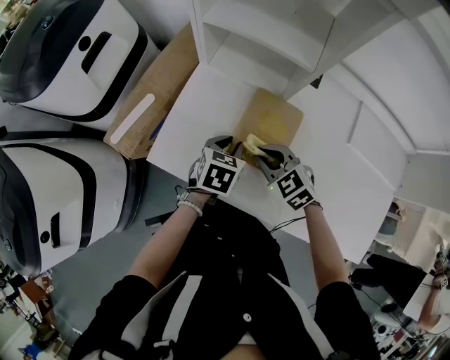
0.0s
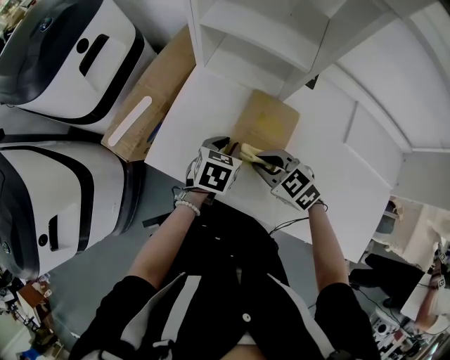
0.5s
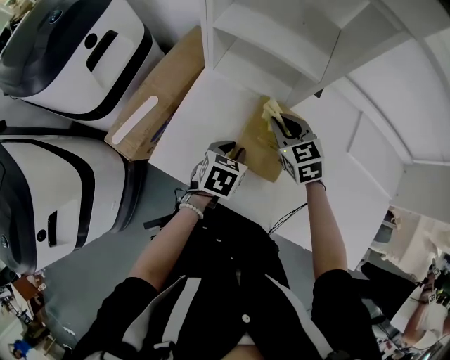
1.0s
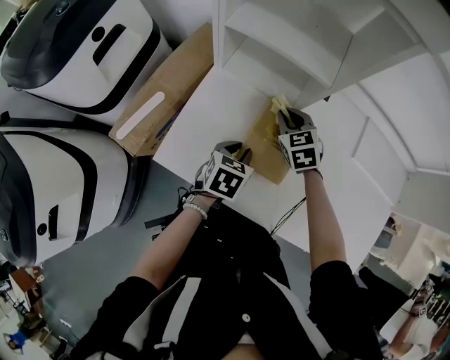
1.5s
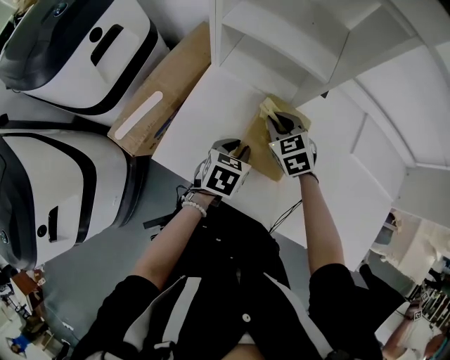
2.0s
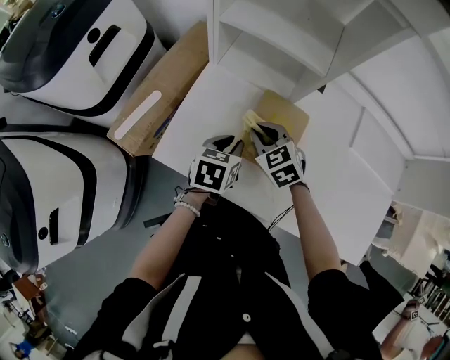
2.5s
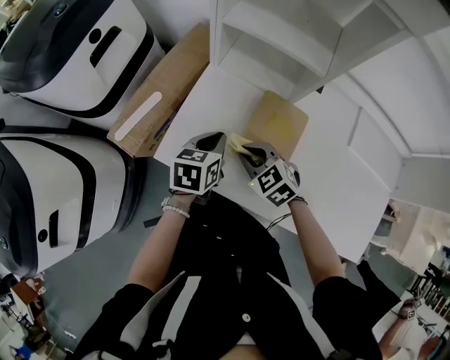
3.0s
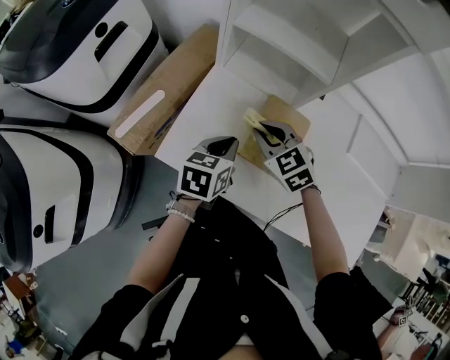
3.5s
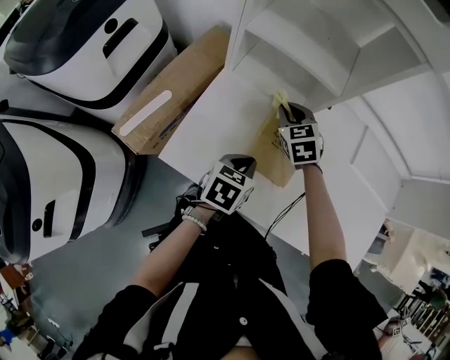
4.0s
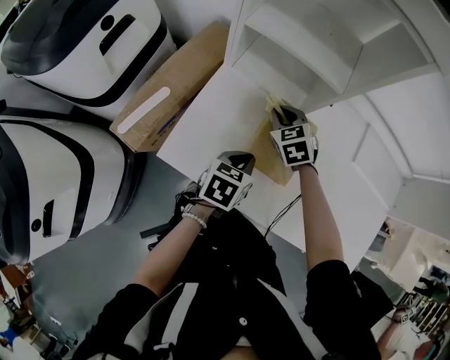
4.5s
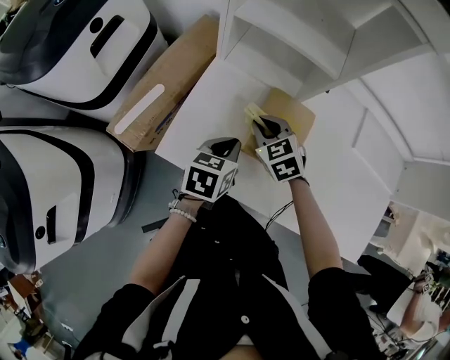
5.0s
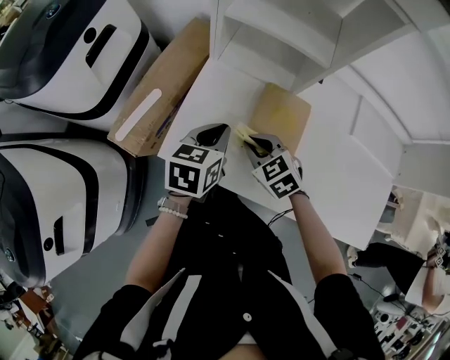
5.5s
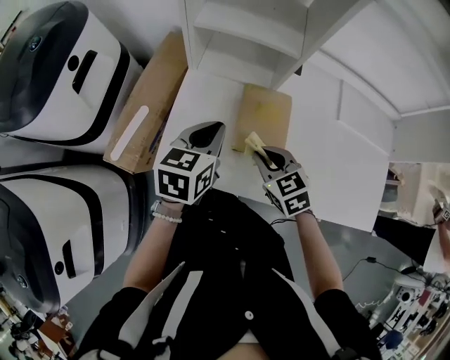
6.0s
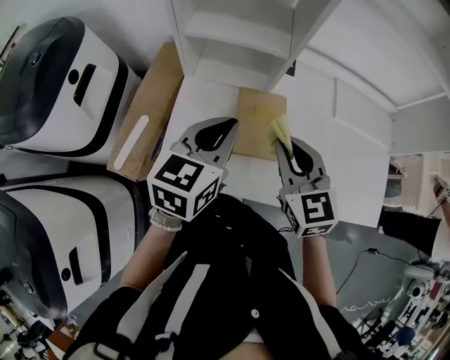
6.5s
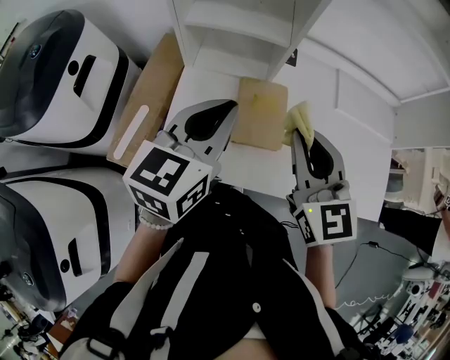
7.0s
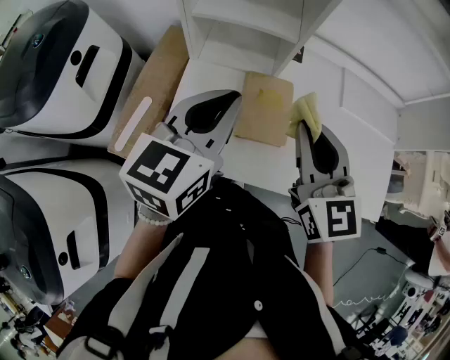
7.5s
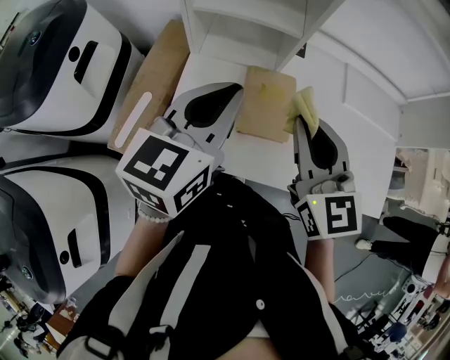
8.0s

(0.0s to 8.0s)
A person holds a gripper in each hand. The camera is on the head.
0.0s - 2.0s: The right gripper travels forward by approximately 10 cm.
2.0s - 4.0s: The left gripper closes up; the right gripper moves roughly 15 cm backward and comes back.
4.0s - 6.0s: The right gripper goes roughly 20 cm backward. Meanwhile the left gripper moves upward and to the left, approximately 10 cm.
6.0s - 8.0s: Both grippers move upward, approximately 20 cm. The right gripper tilts its fingers about 30 degrees upward. Meanwhile the left gripper turns by some 20 degrees.

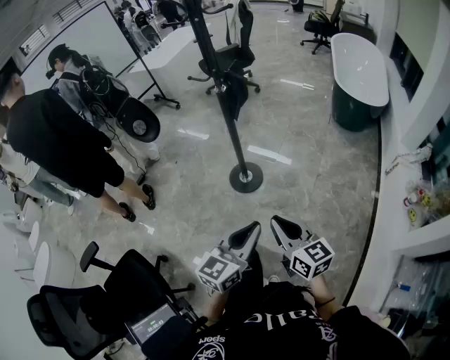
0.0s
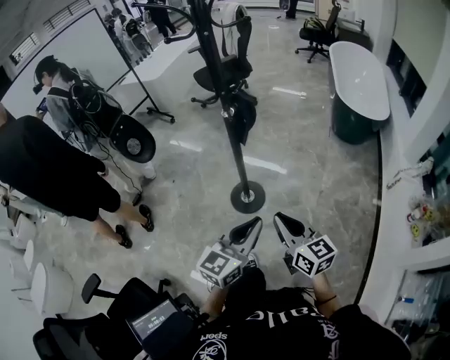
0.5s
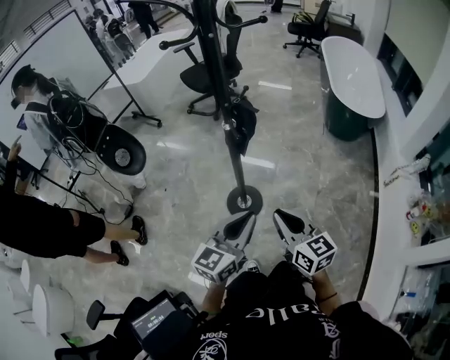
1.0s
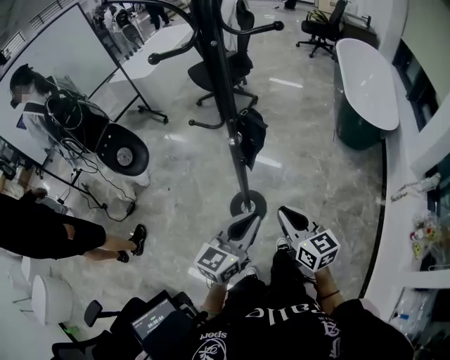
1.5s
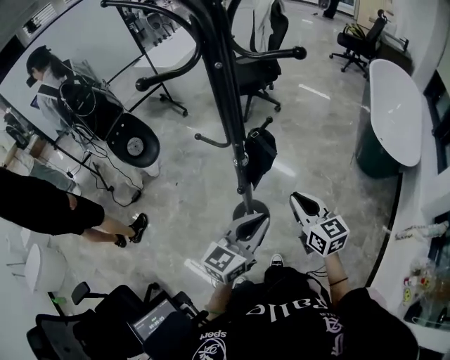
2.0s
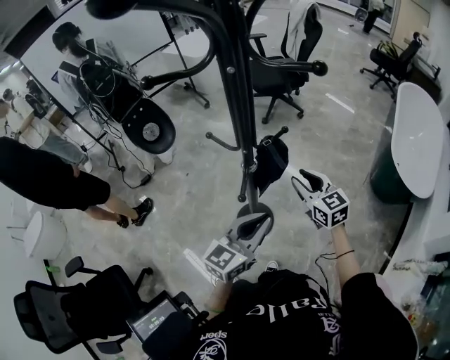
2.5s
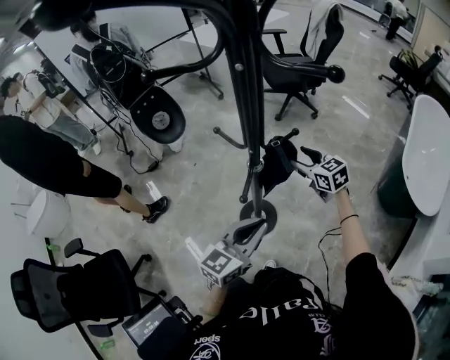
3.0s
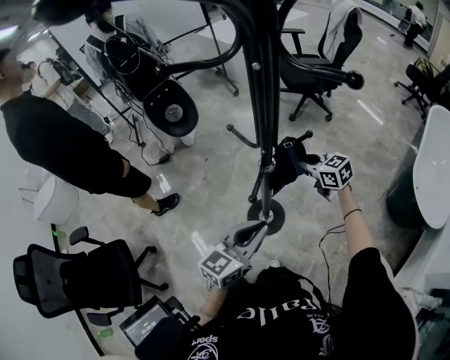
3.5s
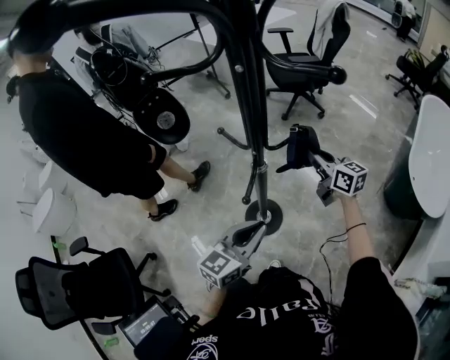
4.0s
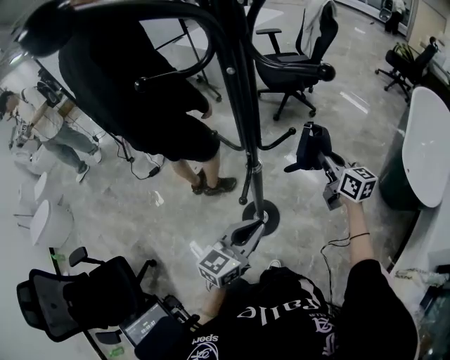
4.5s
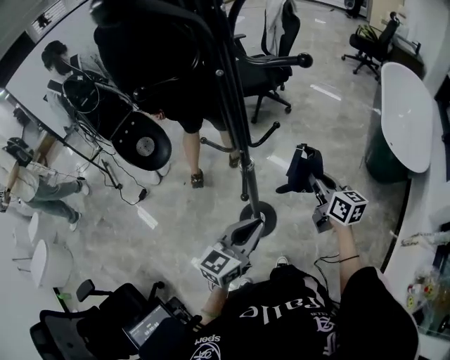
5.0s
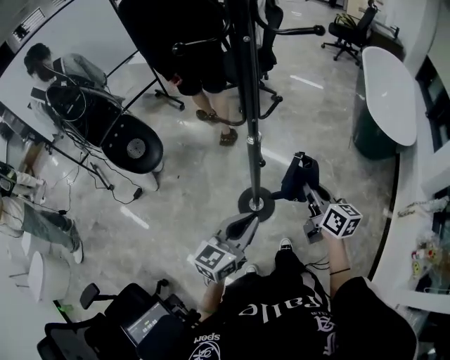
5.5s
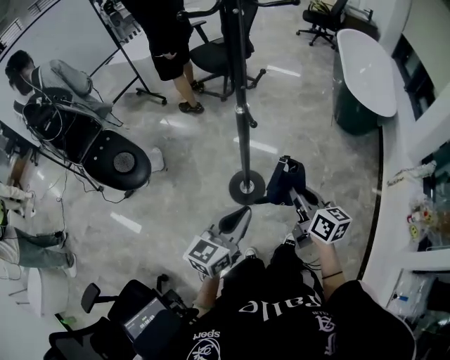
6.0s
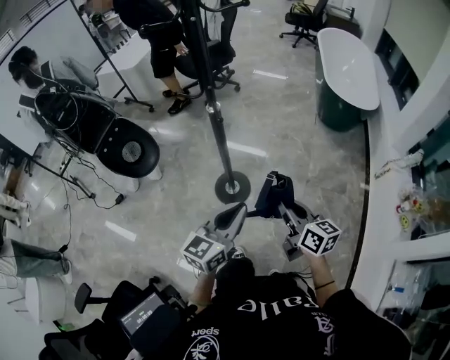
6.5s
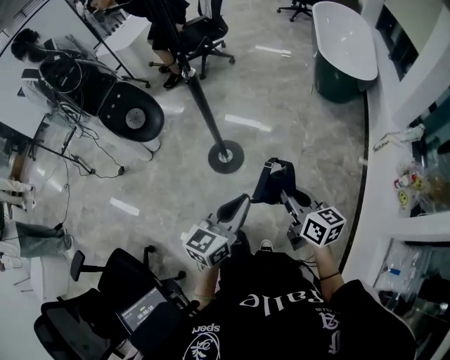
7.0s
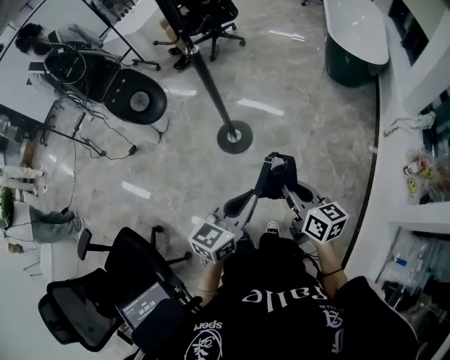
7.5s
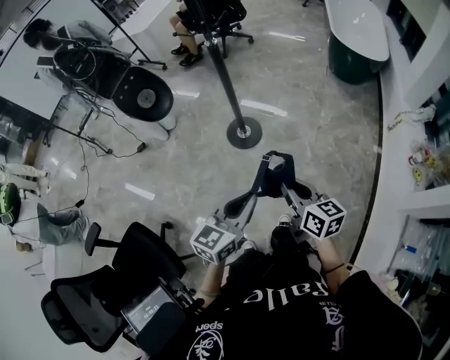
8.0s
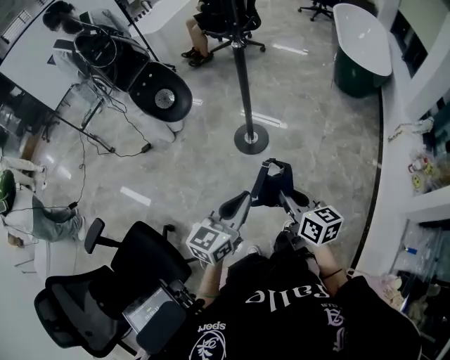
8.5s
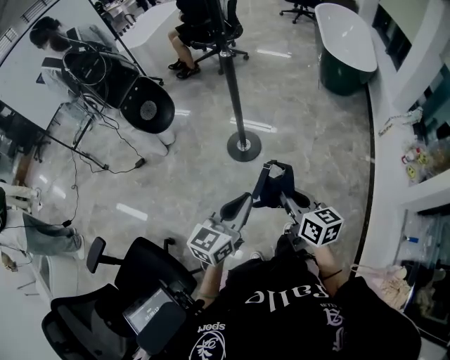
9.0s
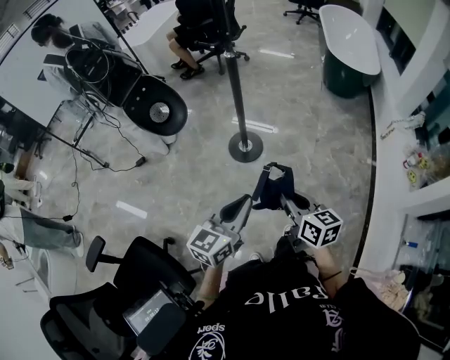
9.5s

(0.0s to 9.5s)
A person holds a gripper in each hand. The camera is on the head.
0.0s - 2.0s: The pair of grippers is taken forward, about 50 cm.
2.0s - 4.0s: The right gripper changes place by approximately 25 cm, changes its angle by approximately 30 degrees, and opens, then closes again; the left gripper ends up roughly 5 cm from where it was.
4.0s - 5.5s: The left gripper shifts by about 15 cm. Meanwhile the right gripper ends up about 30 cm from where it was, and changes its angle by some 40 degrees.
5.5s - 7.5s: The pair of grippers is taken backward and to the right, roughly 40 cm.
7.5s - 9.5s: The right gripper heads to the left and backward, covering some 20 cm, while the left gripper goes about 20 cm to the left.

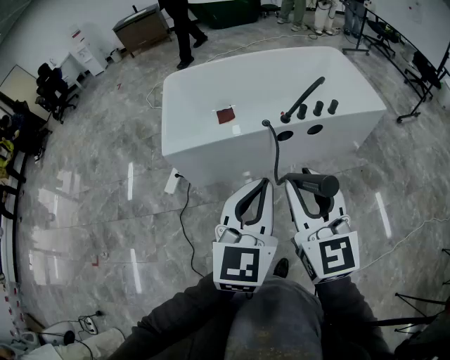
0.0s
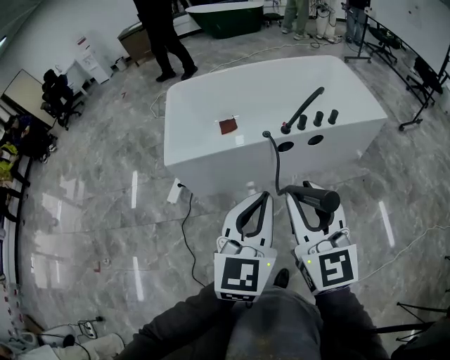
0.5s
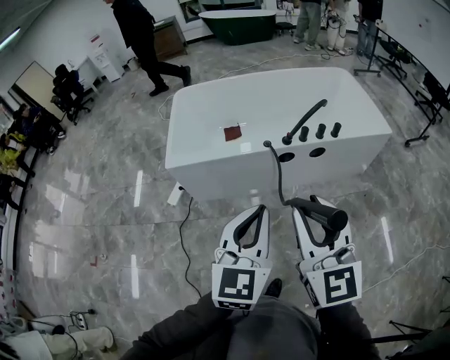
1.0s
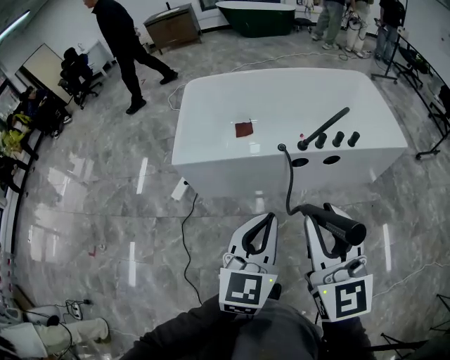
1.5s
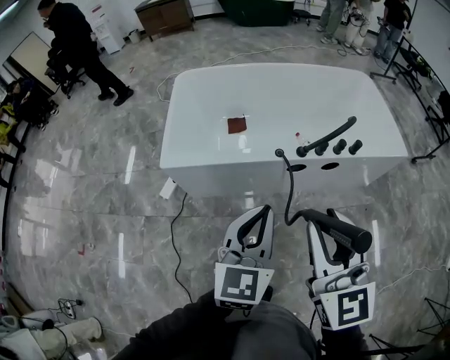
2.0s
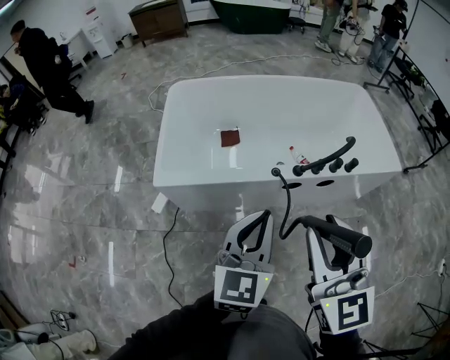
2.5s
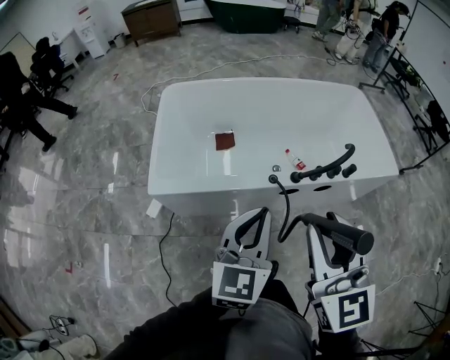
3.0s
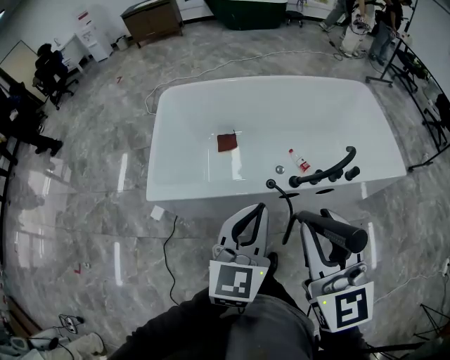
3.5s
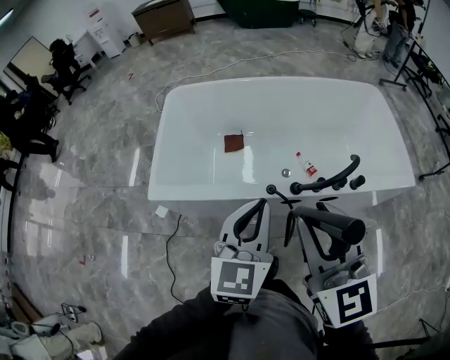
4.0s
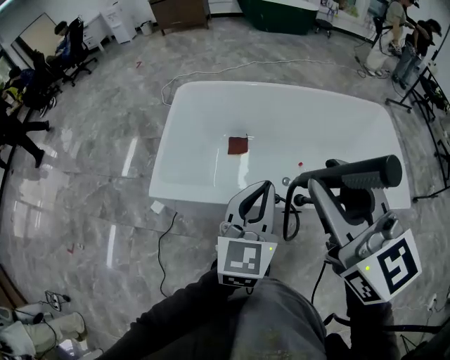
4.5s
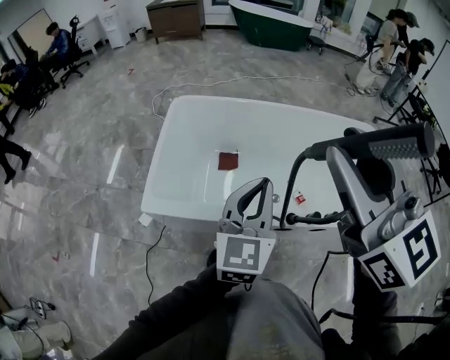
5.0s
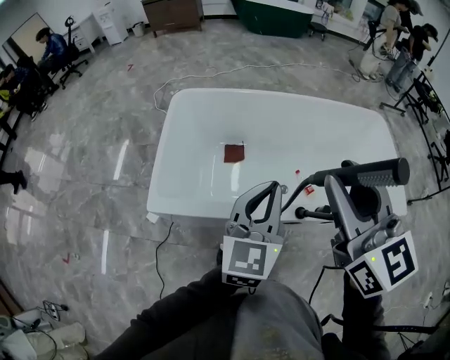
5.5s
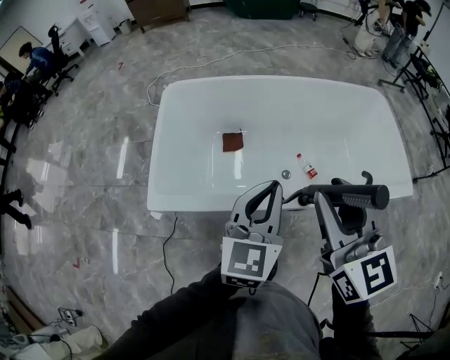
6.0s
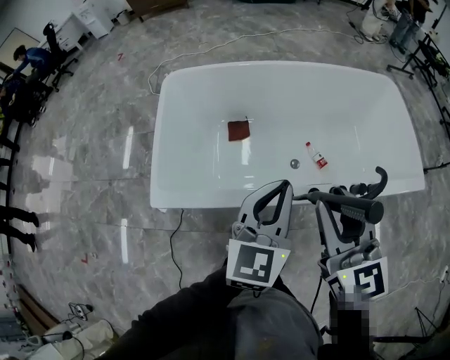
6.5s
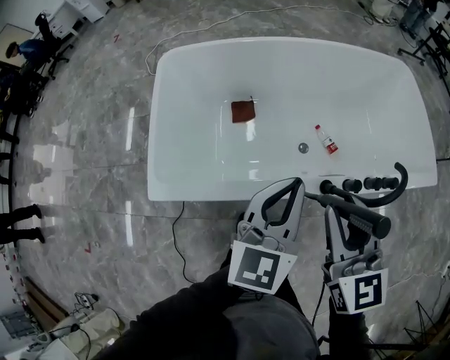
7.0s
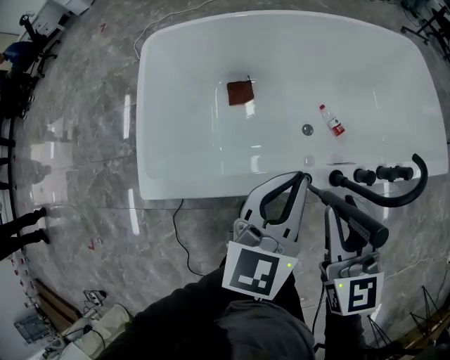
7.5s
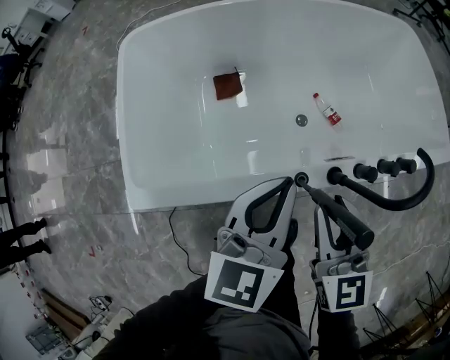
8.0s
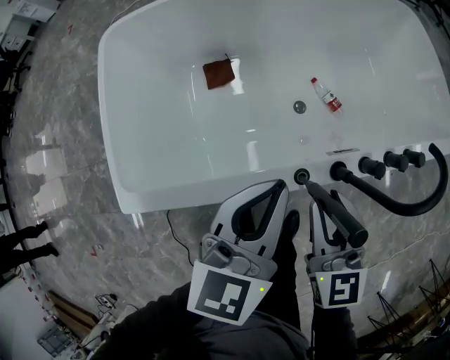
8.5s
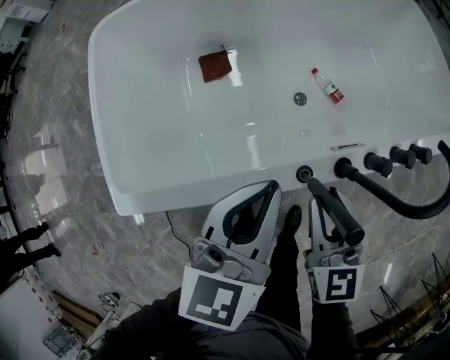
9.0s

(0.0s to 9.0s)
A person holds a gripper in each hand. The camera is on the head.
0.0s - 2.0s: The right gripper travels forward by about 10 cm; the left gripper heads forward and downward, covering roughly 15 cm.
2.0s - 4.5s: Both grippers move forward, about 25 cm. The right gripper changes its angle by about 20 degrees.
4.5s - 7.0s: The left gripper moves forward and downward, about 10 cm. Meanwhile the right gripper goes roughly 20 cm downward and forward, and rotates approximately 30 degrees.
7.0s - 9.0s: The left gripper is displaced downward by some 15 cm, while the right gripper moves downward, roughly 20 cm.
